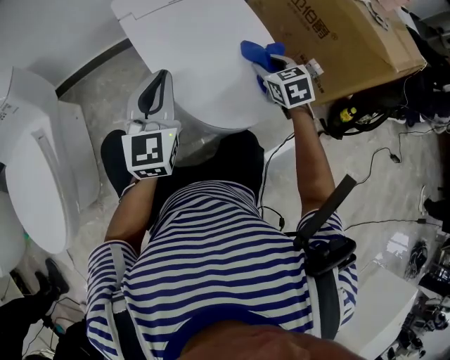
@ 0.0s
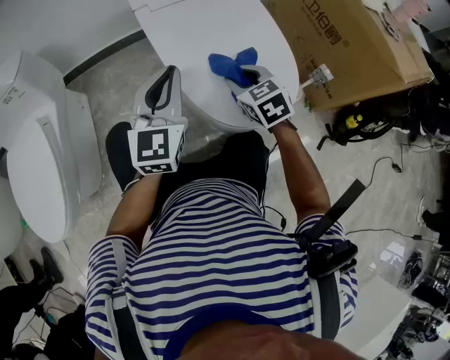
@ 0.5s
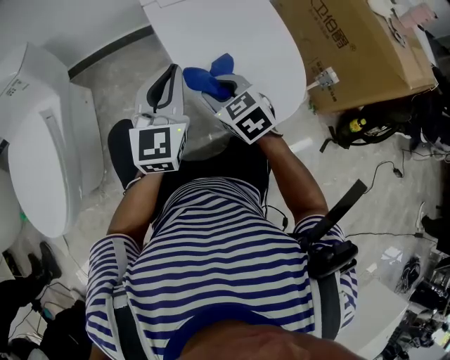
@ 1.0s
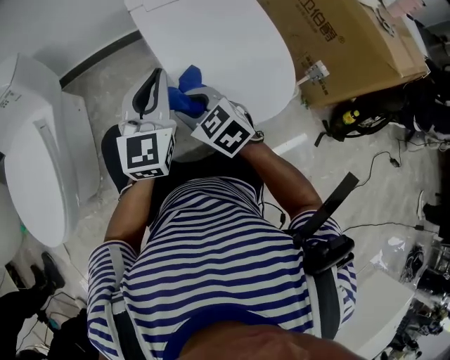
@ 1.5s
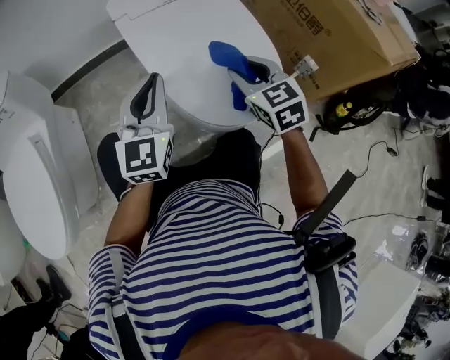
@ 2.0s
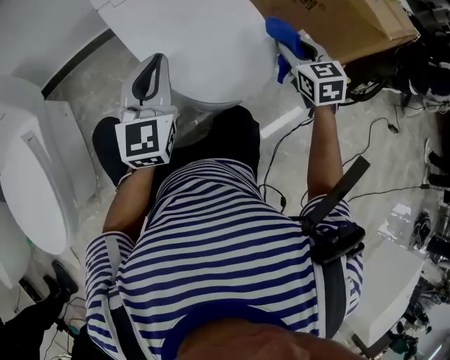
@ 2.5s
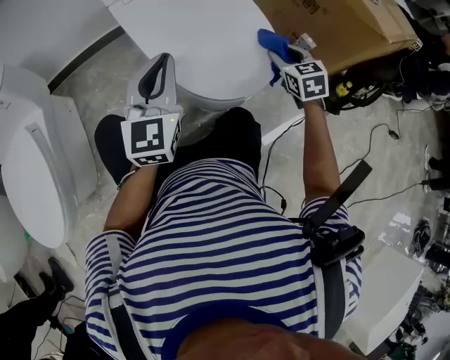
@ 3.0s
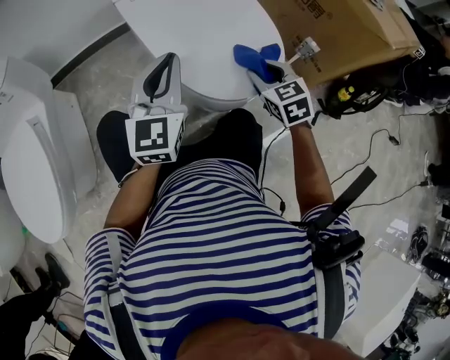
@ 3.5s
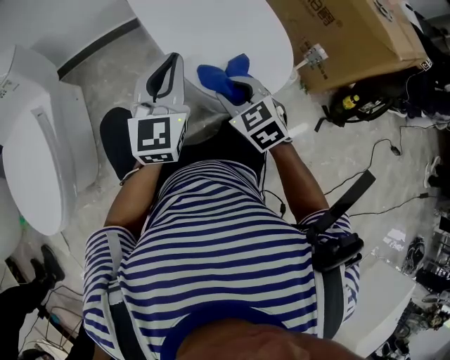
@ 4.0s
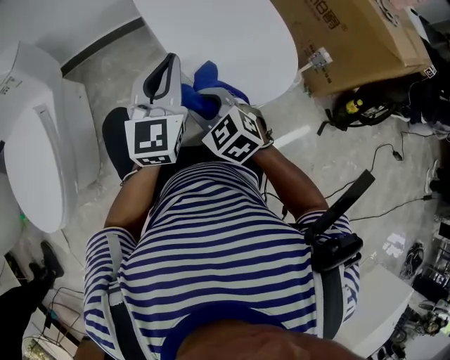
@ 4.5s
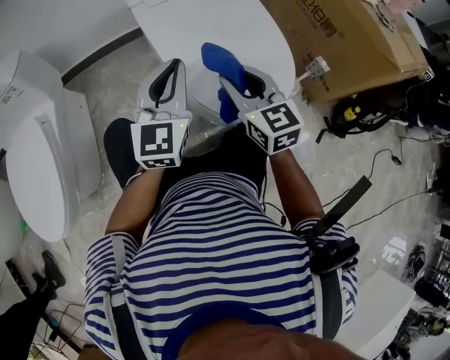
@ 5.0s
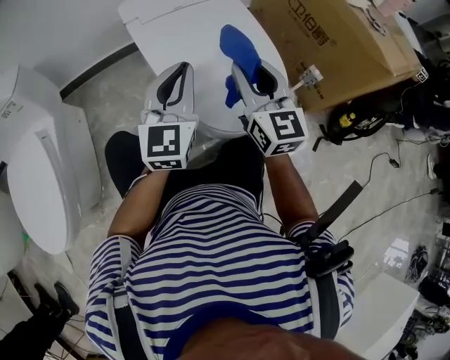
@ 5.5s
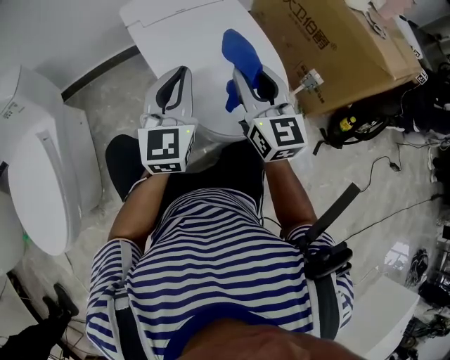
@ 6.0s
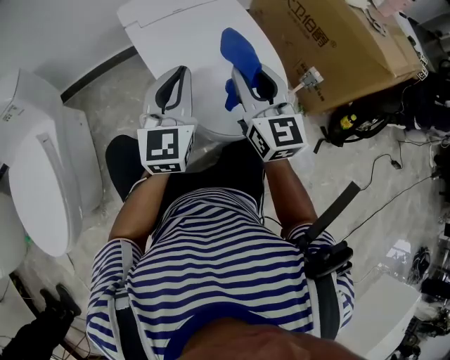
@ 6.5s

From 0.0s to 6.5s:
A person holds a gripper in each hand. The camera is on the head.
From 0.0s to 2.0s: The right gripper heads upward, covering some 10 cm, and travels to the left and back again, roughly 25 cm each way.
From 2.0s to 4.5s: The right gripper heads to the left, backward and downward, covering about 20 cm, and turns by about 20 degrees.
From 4.5s to 6.5s: The right gripper travels upward, to the right and forward by roughly 25 cm, and angles its fingers upward, by about 40 degrees. The left gripper moves roughly 5 cm.

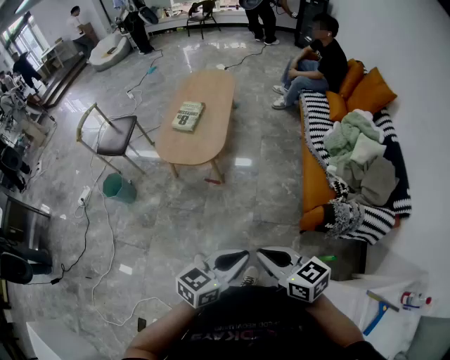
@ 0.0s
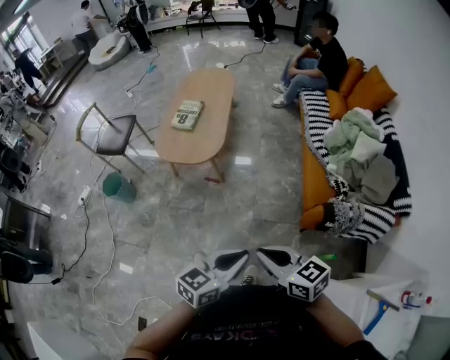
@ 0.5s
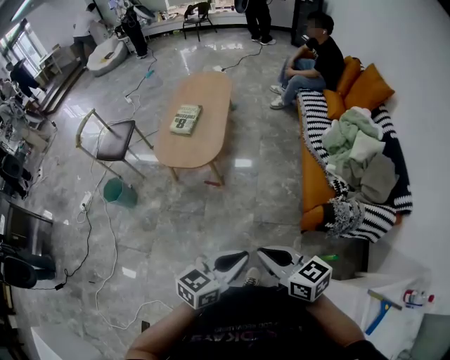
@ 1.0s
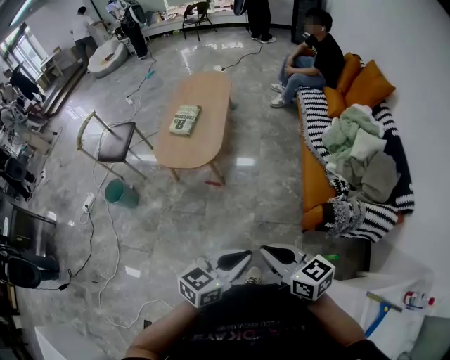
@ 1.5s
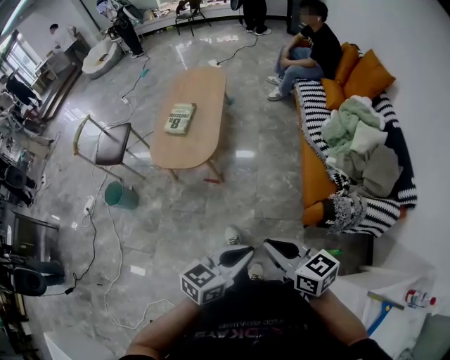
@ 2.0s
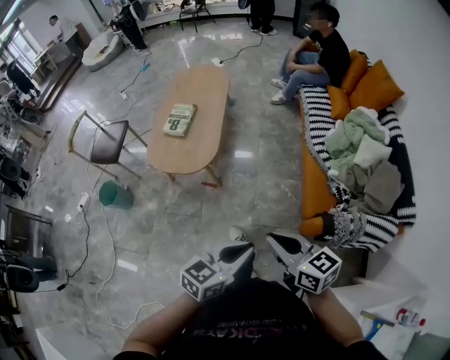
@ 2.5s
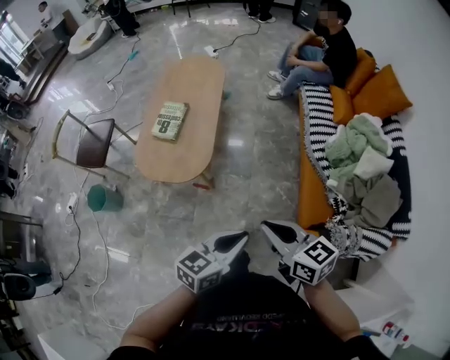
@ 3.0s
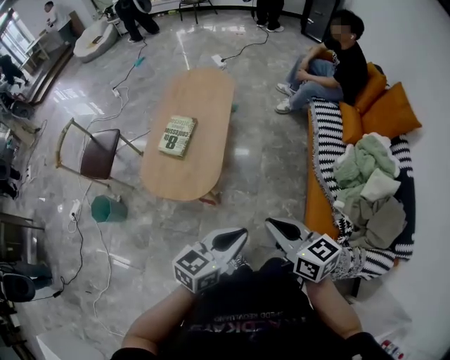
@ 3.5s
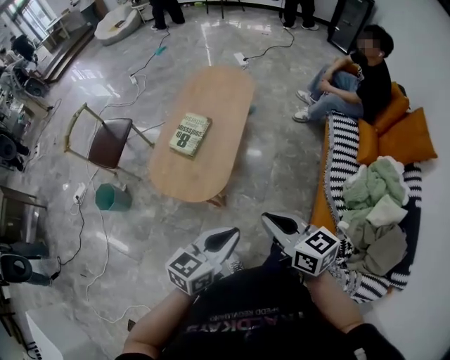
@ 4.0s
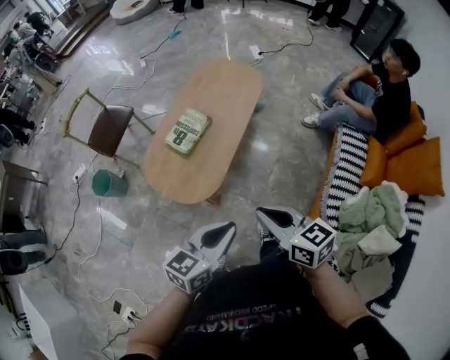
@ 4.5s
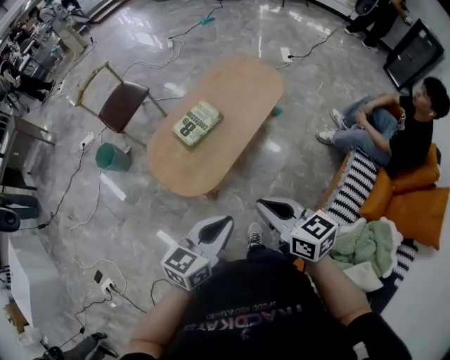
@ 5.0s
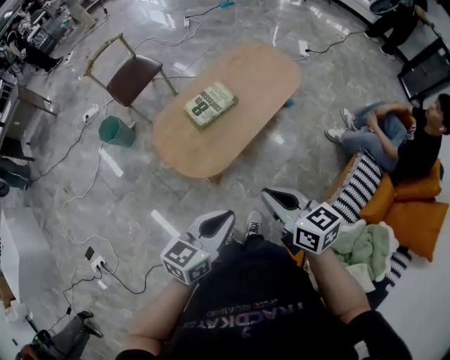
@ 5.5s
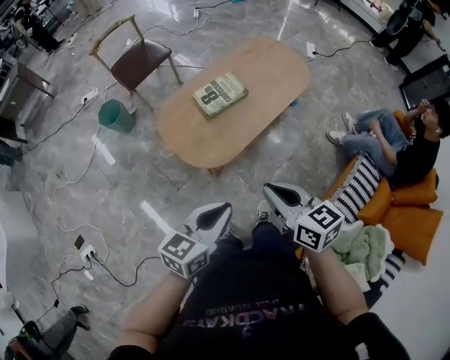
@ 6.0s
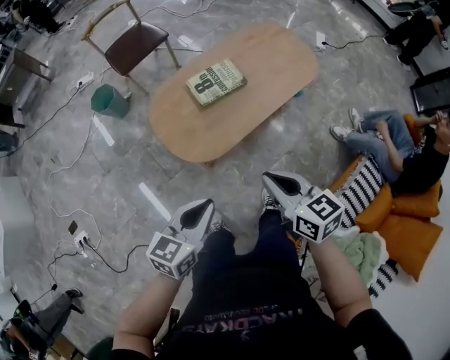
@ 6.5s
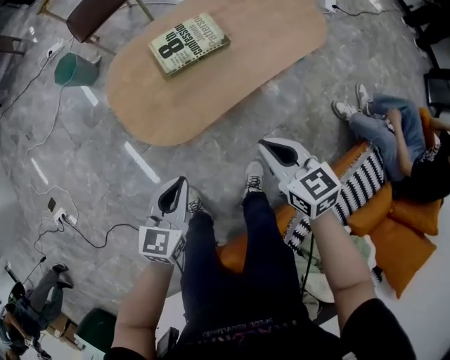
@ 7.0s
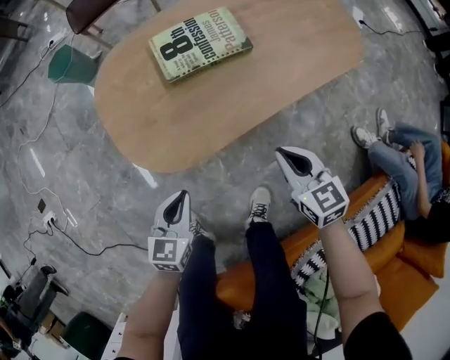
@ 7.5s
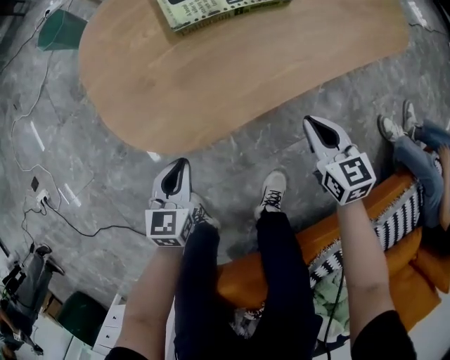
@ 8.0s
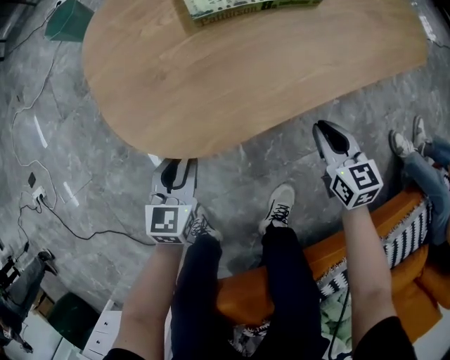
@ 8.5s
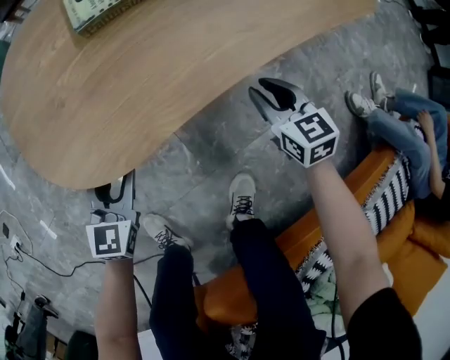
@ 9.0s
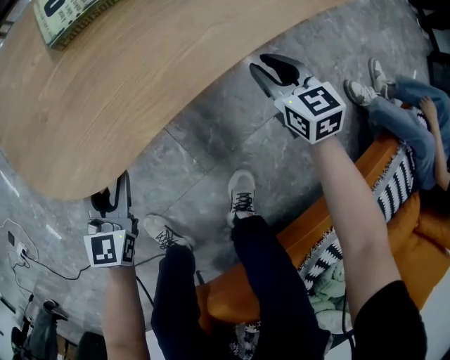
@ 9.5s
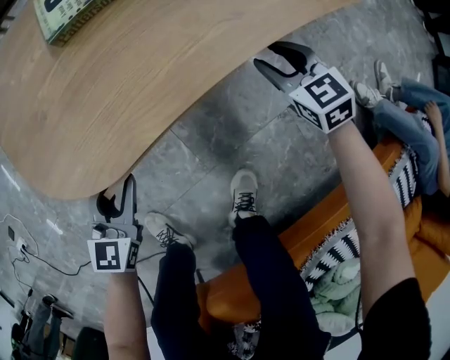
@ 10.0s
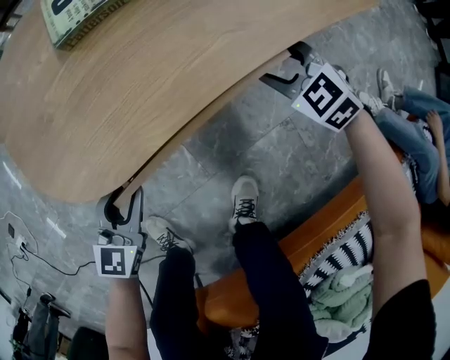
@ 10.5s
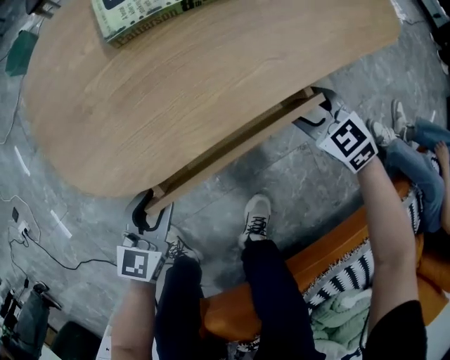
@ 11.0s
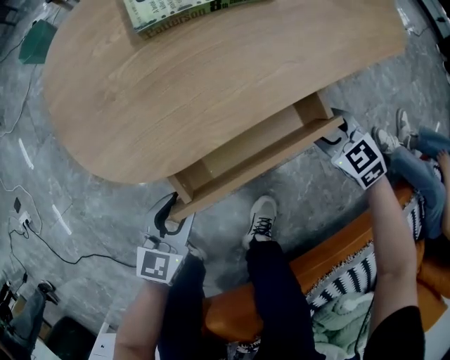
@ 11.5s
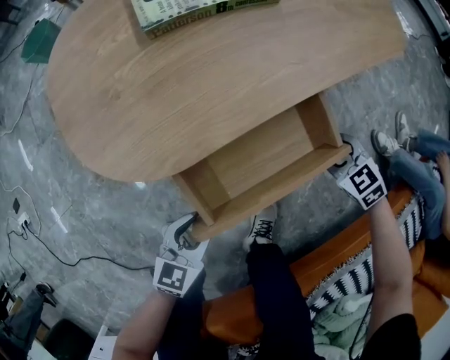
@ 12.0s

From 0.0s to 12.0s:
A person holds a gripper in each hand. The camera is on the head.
From 0.0s to 2.0s: The right gripper goes about 10 cm to the right and forward. Meanwhile the left gripper moves to the right, approximately 5 cm.
From 2.0s to 4.0s: The two grippers travel together, forward, about 40 cm.
From 4.0s to 6.0s: The right gripper moves roughly 15 cm, and changes its angle by some 30 degrees. The left gripper changes its angle by some 30 degrees.
From 6.0s to 8.0s: The left gripper goes roughly 50 cm downward, and rotates approximately 40 degrees. The right gripper shifts about 60 cm downward and forward, and swivels roughly 20 degrees.
From 8.0s to 10.0s: The left gripper ends up about 5 cm from where it was, and opens up; the right gripper shifts approximately 15 cm downward, forward and to the right, and opens its fingers.
From 10.0s to 12.0s: Both grippers travel together backward, about 15 cm.

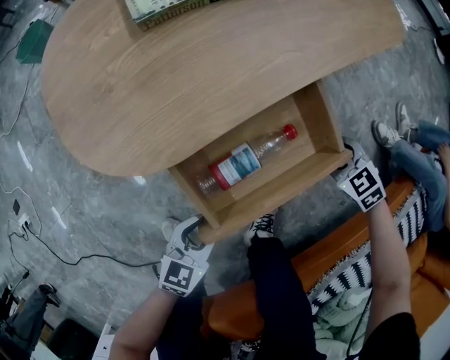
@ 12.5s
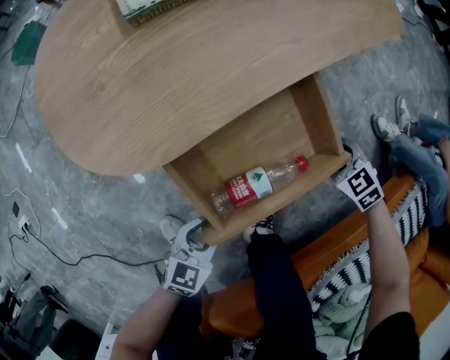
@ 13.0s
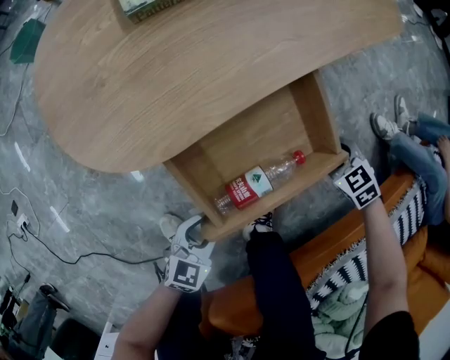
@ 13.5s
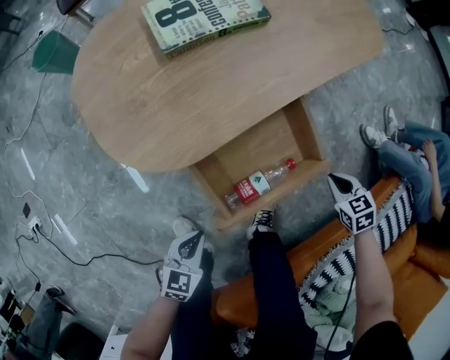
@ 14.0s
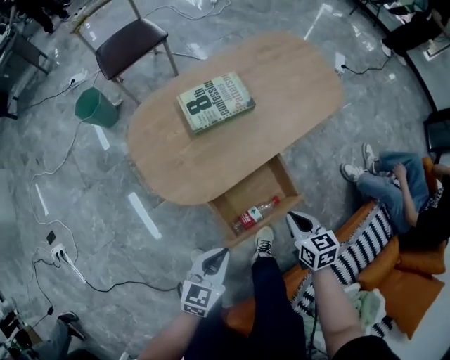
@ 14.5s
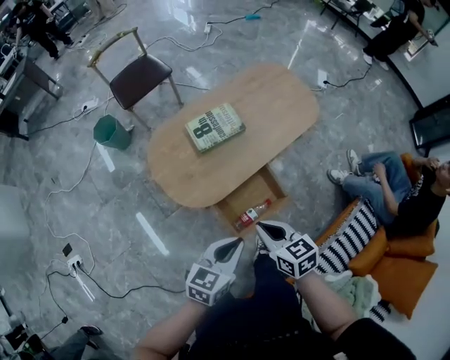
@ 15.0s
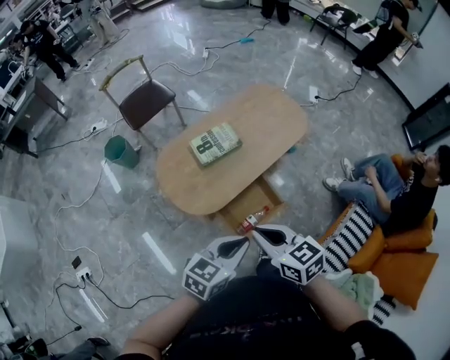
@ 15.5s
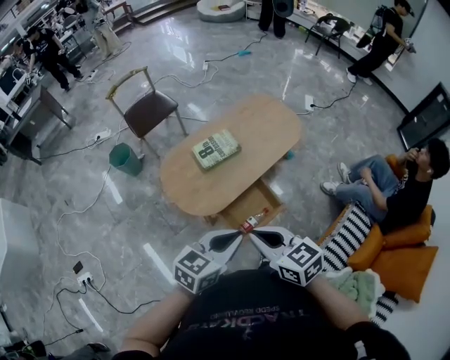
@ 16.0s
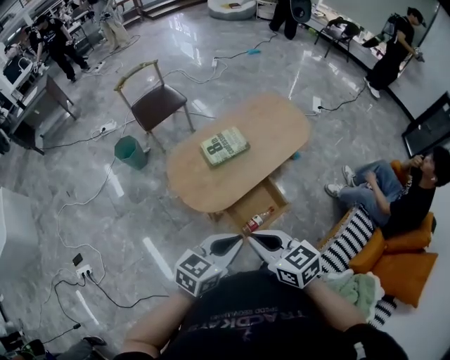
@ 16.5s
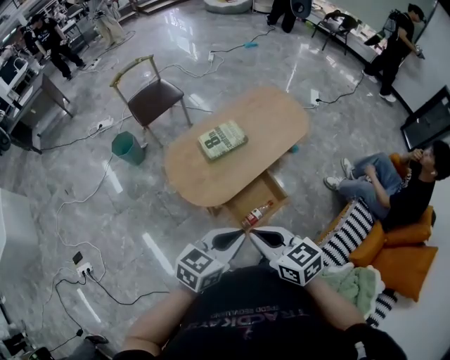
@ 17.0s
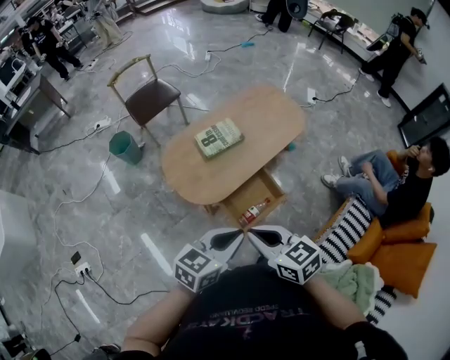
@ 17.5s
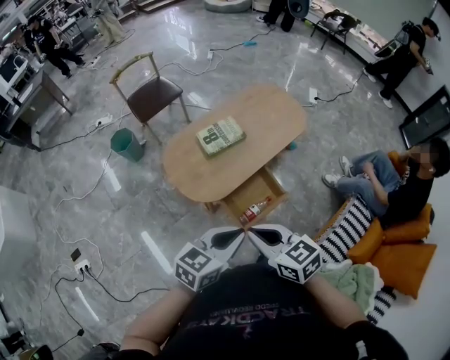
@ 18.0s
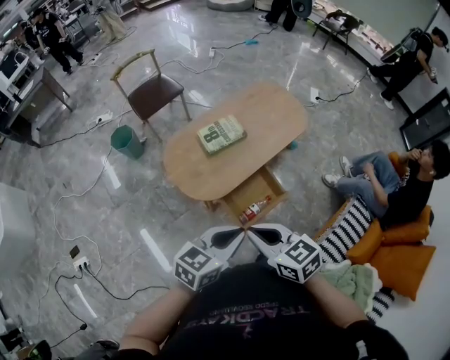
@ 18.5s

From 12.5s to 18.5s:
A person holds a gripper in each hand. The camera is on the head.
From 12.5s to 14.5s: The grippers both shift upward by approximately 30 cm. The right gripper turns by some 40 degrees, and closes up. Meanwhile the left gripper closes.
From 14.5s to 16.5s: The right gripper heads upward and to the left, covering approximately 50 cm, and turns by about 20 degrees. Meanwhile the left gripper heads upward, covering some 35 cm.
From 16.5s to 18.5s: The grippers make only small movements.

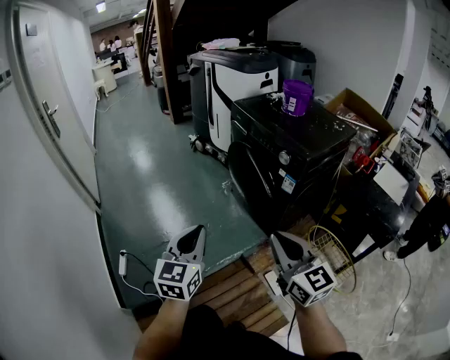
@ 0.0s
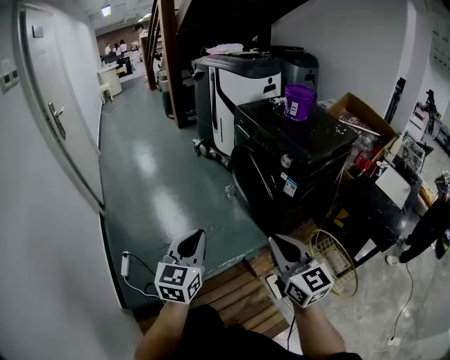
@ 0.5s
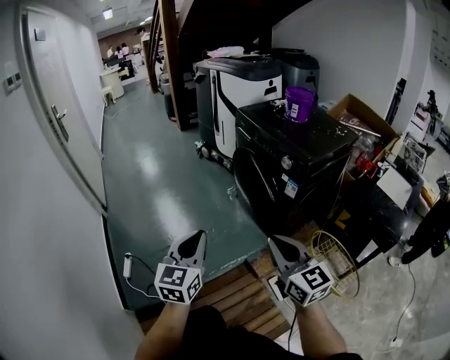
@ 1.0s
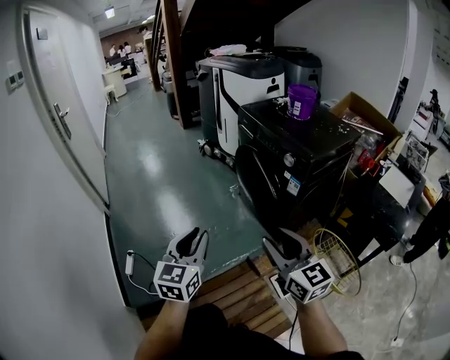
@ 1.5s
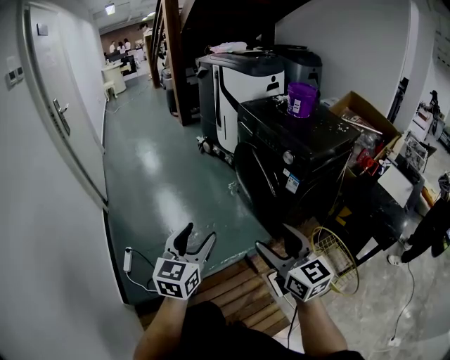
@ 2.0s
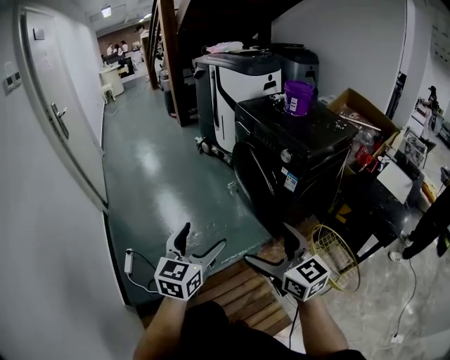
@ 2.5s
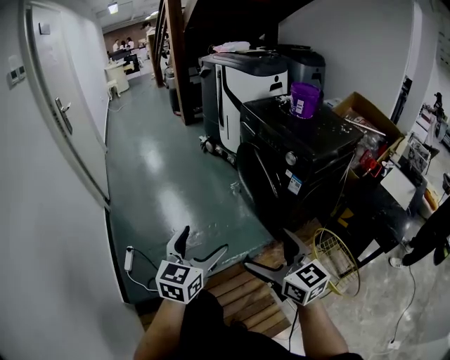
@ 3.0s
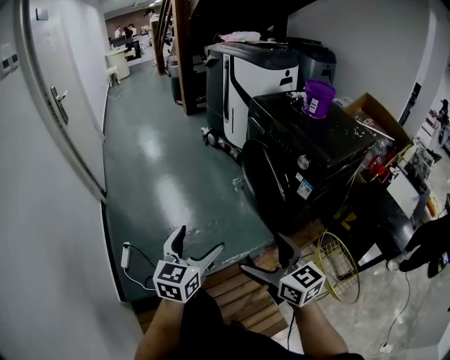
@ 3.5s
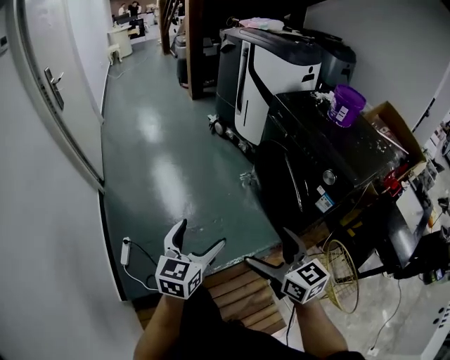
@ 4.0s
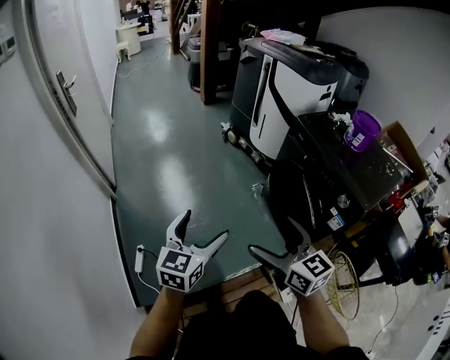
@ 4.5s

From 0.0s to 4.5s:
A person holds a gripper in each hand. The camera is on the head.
From 0.0s to 2.0s: The left gripper opens. Meanwhile the right gripper opens.
From 2.0s to 4.5s: Both grippers travel together forward and to the left, about 30 cm. The right gripper opens up. Meanwhile the left gripper opens up.
